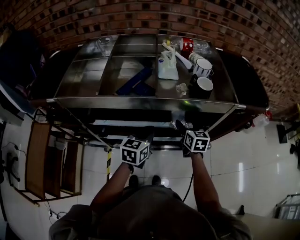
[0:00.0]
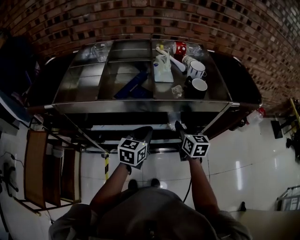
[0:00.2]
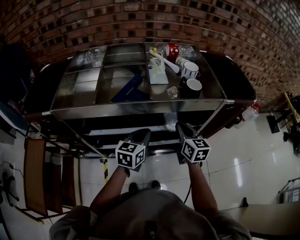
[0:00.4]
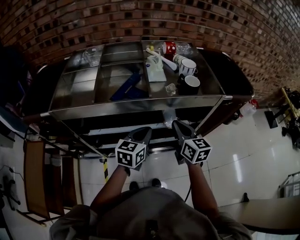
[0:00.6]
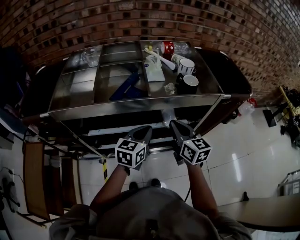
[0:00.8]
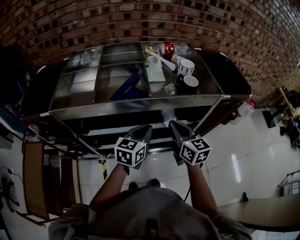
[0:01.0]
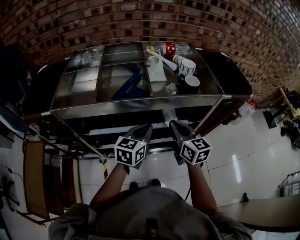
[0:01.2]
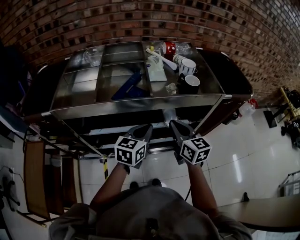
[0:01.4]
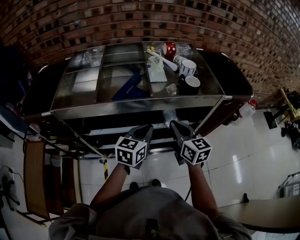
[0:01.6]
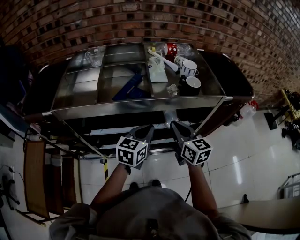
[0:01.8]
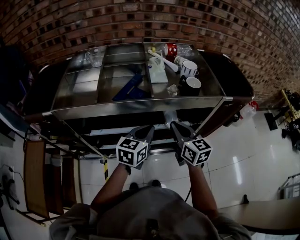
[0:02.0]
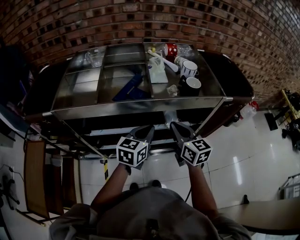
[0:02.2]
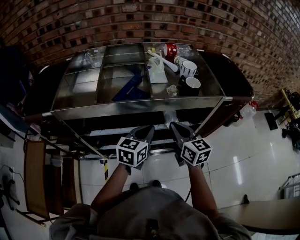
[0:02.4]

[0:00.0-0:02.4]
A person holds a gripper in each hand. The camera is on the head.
0:00.0 to 0:01.2: The left gripper shifts roughly 5 cm upward. Meanwhile the right gripper goes about 15 cm upward, backward and to the left, and closes up.
0:01.2 to 0:02.4: Both grippers stay put.

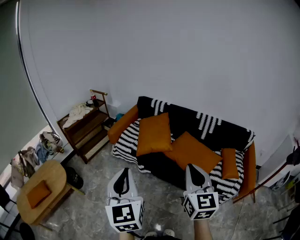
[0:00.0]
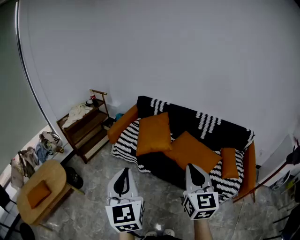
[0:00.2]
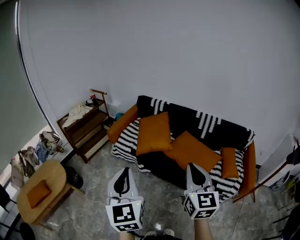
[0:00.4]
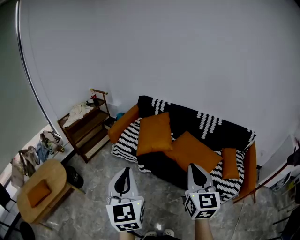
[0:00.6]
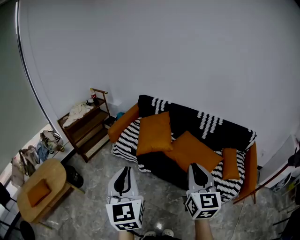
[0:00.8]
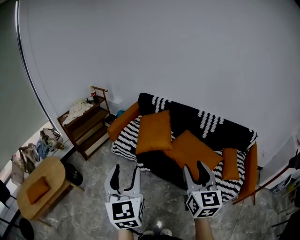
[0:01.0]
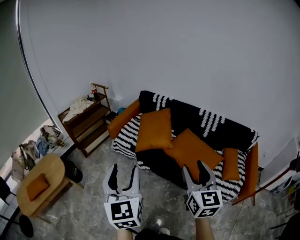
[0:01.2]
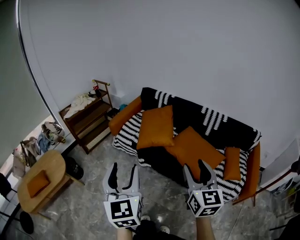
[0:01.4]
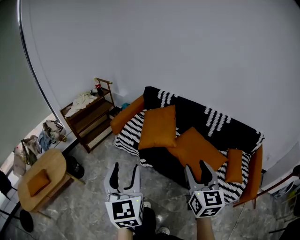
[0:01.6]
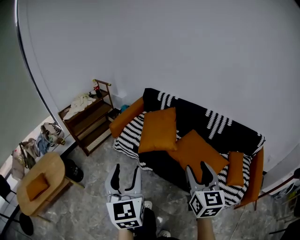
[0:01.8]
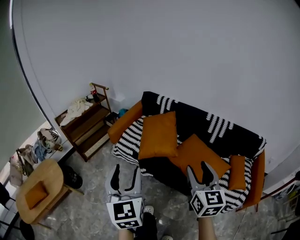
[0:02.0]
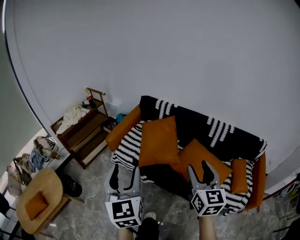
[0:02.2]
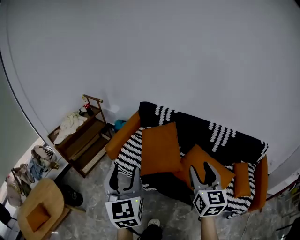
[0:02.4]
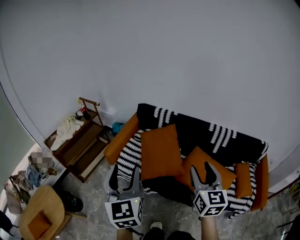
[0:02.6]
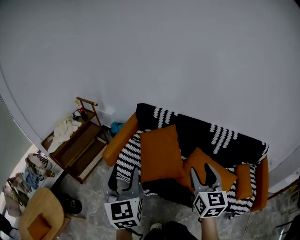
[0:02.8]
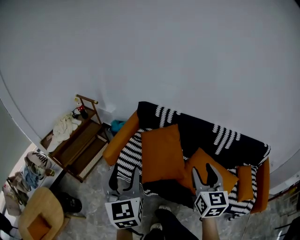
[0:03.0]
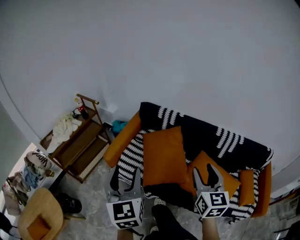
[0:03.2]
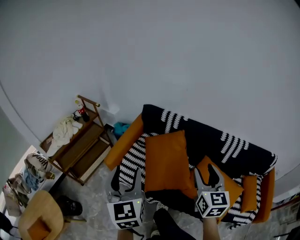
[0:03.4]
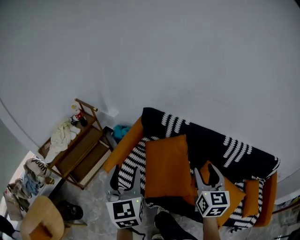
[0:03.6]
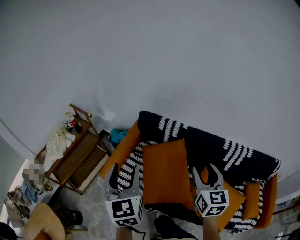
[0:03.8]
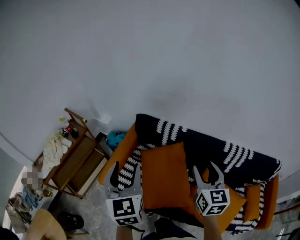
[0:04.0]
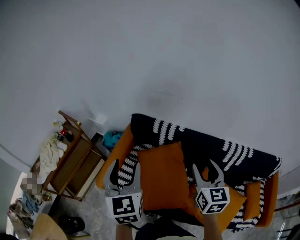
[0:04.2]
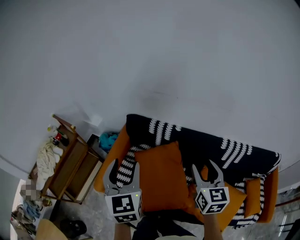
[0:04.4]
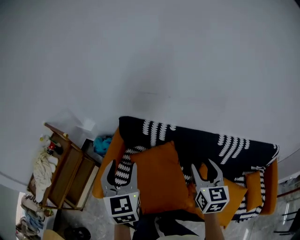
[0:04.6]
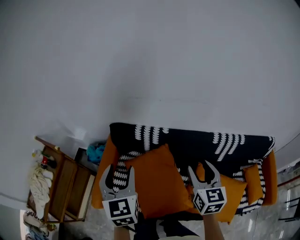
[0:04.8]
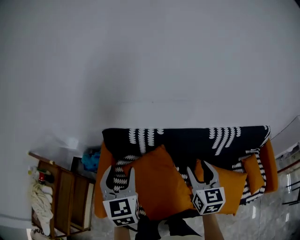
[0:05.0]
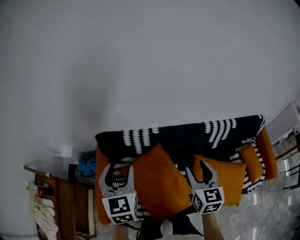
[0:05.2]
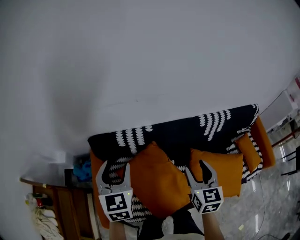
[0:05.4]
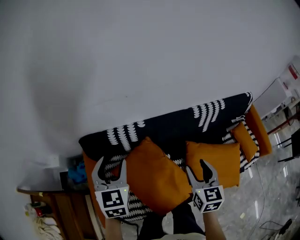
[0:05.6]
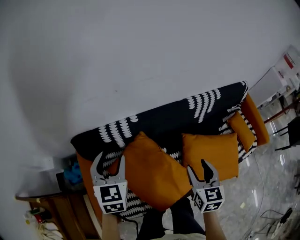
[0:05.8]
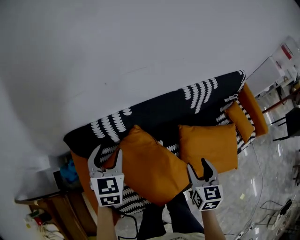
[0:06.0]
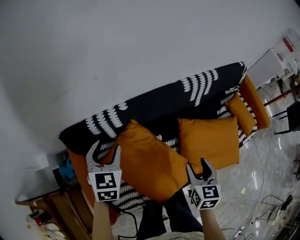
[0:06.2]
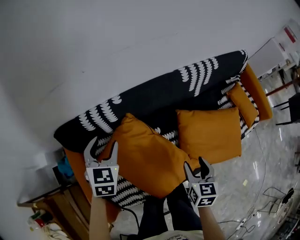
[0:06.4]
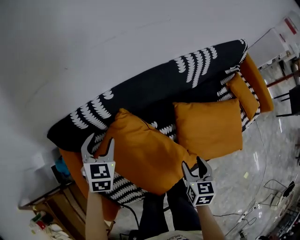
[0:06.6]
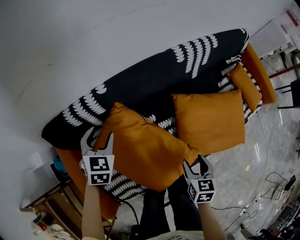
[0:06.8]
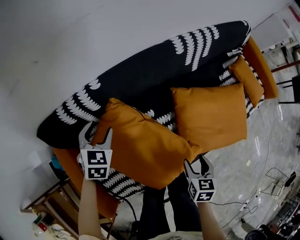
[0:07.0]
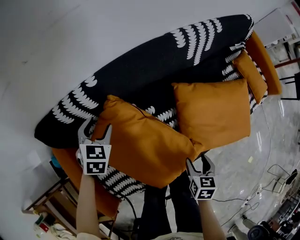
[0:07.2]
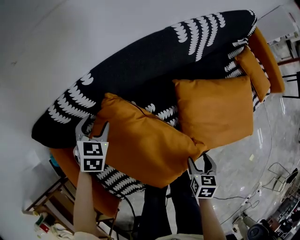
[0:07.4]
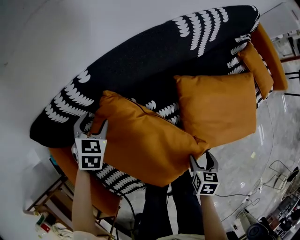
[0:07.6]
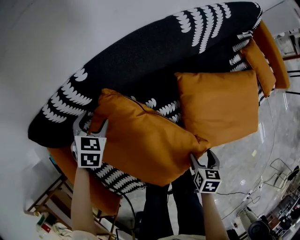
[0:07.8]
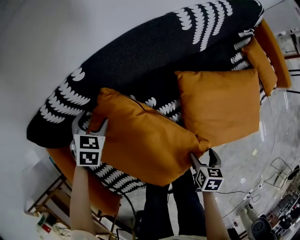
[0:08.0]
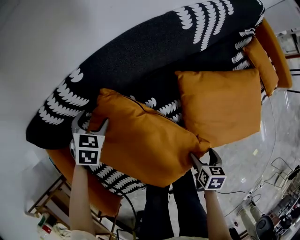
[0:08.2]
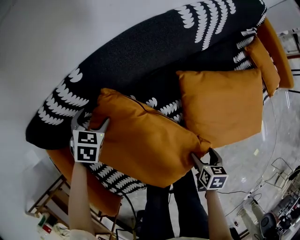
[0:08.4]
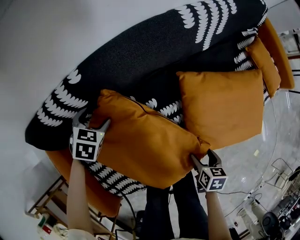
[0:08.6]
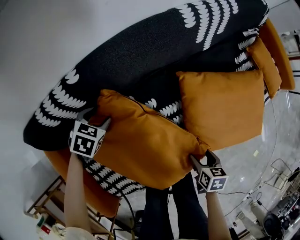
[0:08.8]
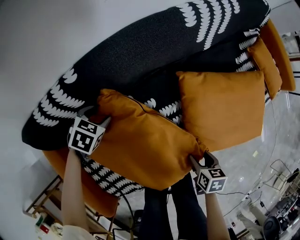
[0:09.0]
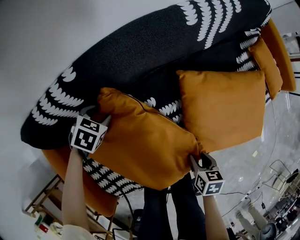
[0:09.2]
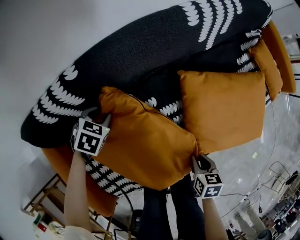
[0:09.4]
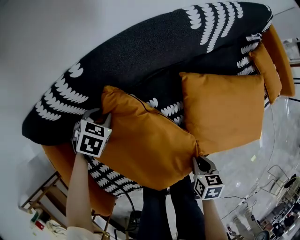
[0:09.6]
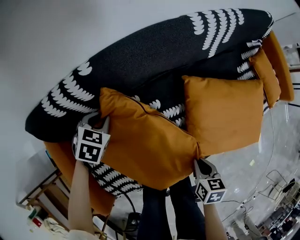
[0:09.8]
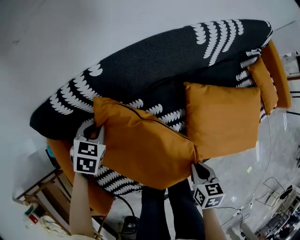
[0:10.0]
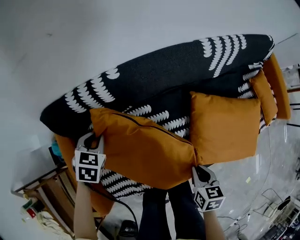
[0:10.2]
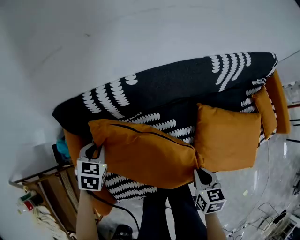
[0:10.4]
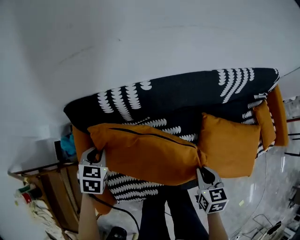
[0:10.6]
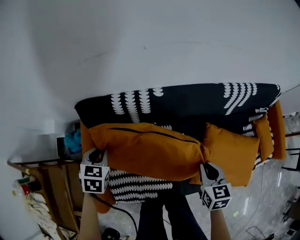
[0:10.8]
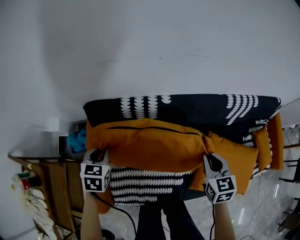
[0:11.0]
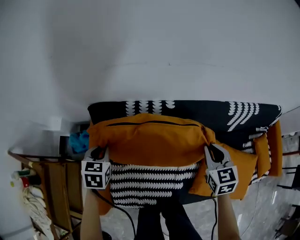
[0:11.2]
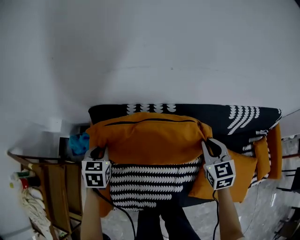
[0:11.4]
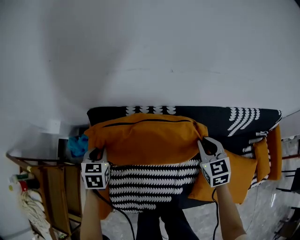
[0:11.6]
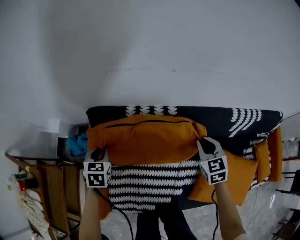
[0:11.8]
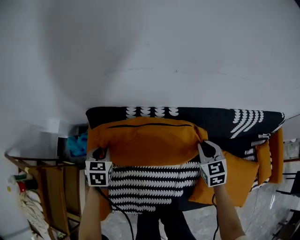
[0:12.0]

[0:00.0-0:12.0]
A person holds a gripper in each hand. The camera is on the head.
0:00.0 to 0:01.6: The right gripper goes about 10 cm forward and to the right, and opens. The left gripper shifts some 5 cm forward, and opens its fingers.
0:01.6 to 0:03.0: Both grippers move forward, about 35 cm.
0:03.0 to 0:04.4: The two grippers go some 35 cm forward.
0:04.4 to 0:06.0: The right gripper is displaced downward by some 15 cm, and changes its angle by approximately 40 degrees. Meanwhile the left gripper moves about 35 cm, and rotates roughly 50 degrees.
0:06.0 to 0:07.6: Both grippers travel together downward, about 30 cm. The right gripper points its fingers roughly 30 degrees further downward. Meanwhile the left gripper rotates approximately 30 degrees.
0:07.6 to 0:09.0: The left gripper shifts roughly 10 cm downward, and changes its angle by approximately 20 degrees, while the right gripper heads downward, covering approximately 5 cm.
0:09.0 to 0:10.4: The right gripper travels upward by some 15 cm, turns by approximately 30 degrees, and closes its fingers. Meanwhile the left gripper moves about 25 cm, changes its angle by roughly 30 degrees, and closes.
0:10.4 to 0:12.0: The right gripper heads forward, covering about 25 cm, and swivels roughly 40 degrees; the left gripper travels to the left by approximately 10 cm, and turns by about 30 degrees.

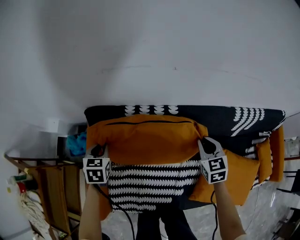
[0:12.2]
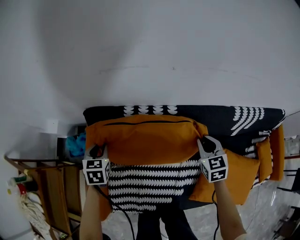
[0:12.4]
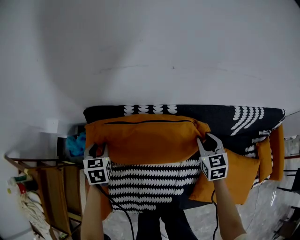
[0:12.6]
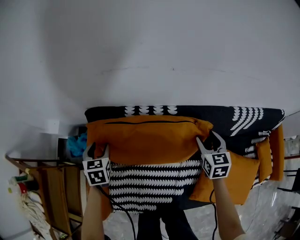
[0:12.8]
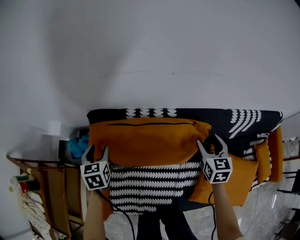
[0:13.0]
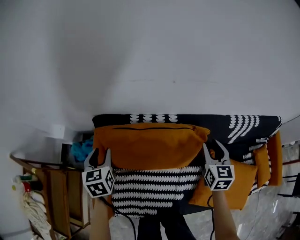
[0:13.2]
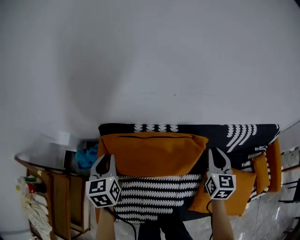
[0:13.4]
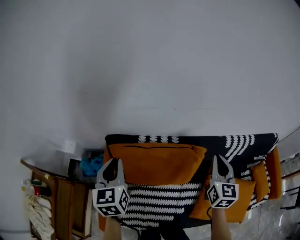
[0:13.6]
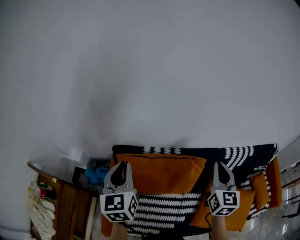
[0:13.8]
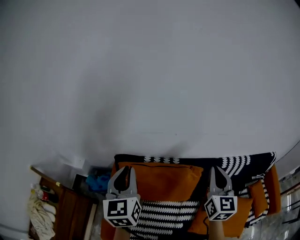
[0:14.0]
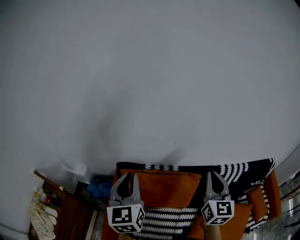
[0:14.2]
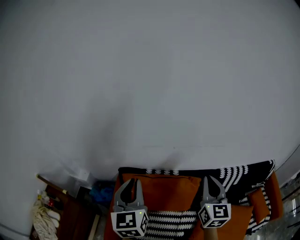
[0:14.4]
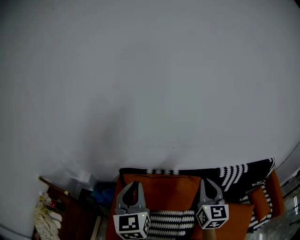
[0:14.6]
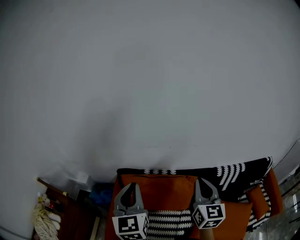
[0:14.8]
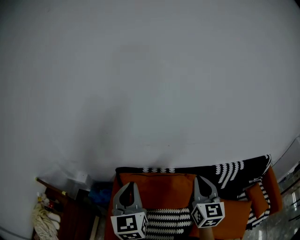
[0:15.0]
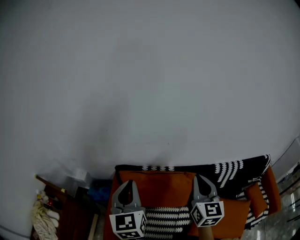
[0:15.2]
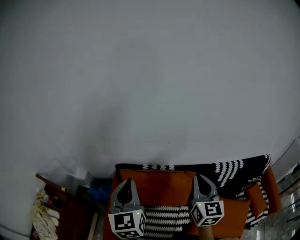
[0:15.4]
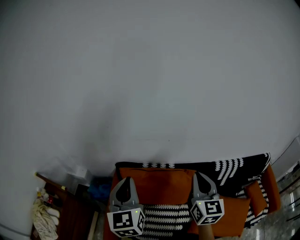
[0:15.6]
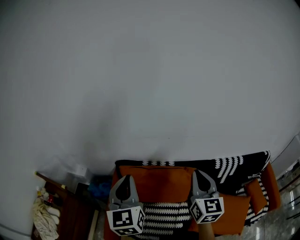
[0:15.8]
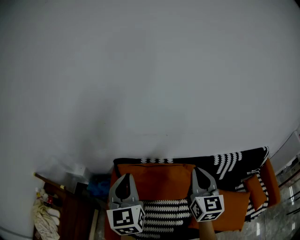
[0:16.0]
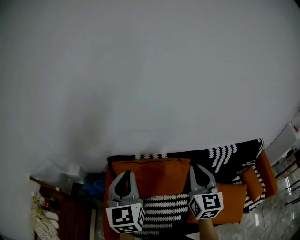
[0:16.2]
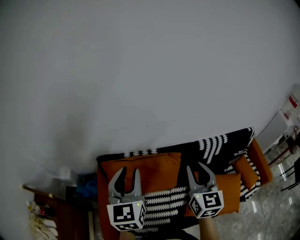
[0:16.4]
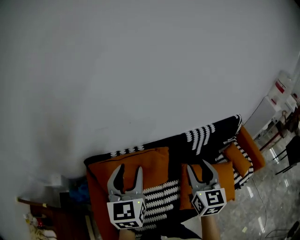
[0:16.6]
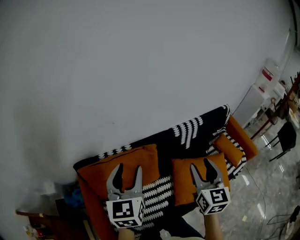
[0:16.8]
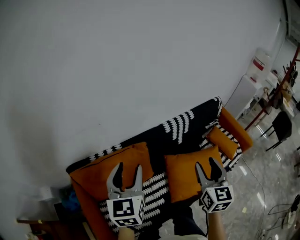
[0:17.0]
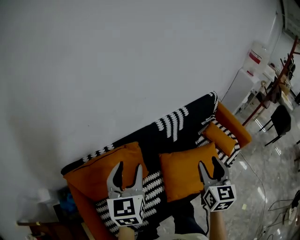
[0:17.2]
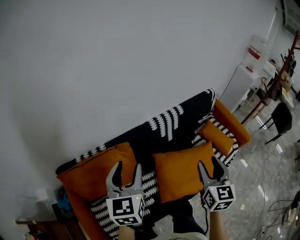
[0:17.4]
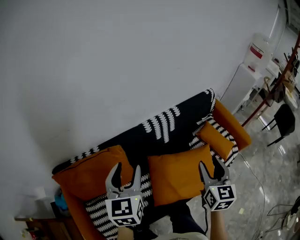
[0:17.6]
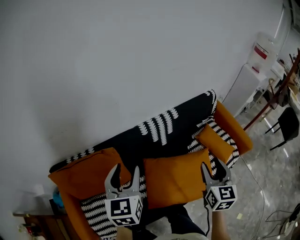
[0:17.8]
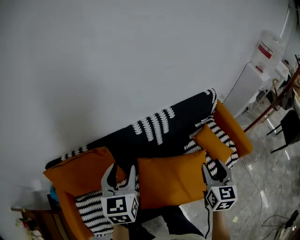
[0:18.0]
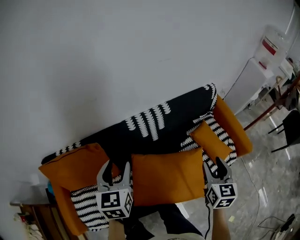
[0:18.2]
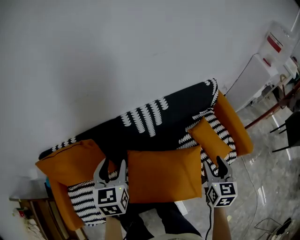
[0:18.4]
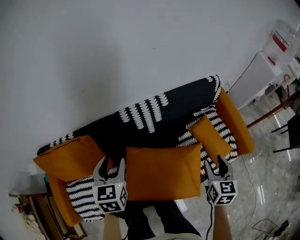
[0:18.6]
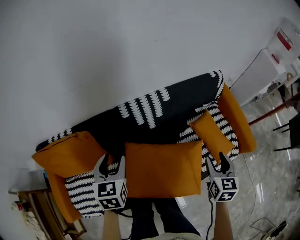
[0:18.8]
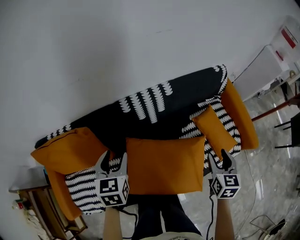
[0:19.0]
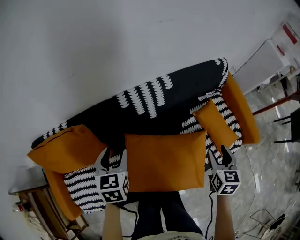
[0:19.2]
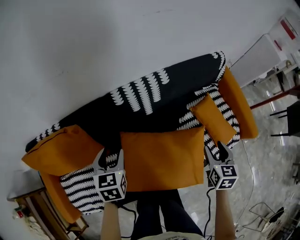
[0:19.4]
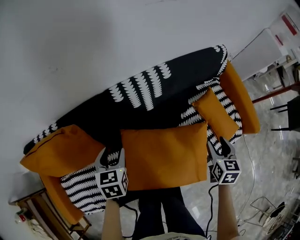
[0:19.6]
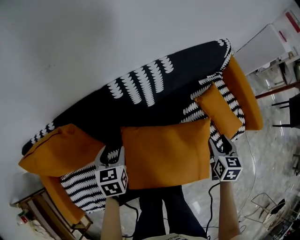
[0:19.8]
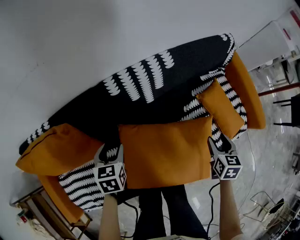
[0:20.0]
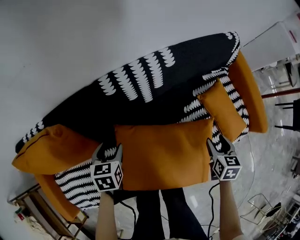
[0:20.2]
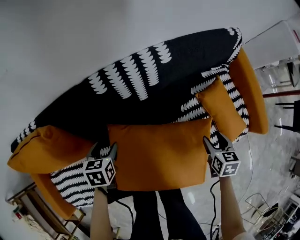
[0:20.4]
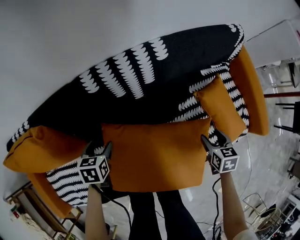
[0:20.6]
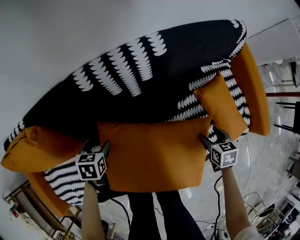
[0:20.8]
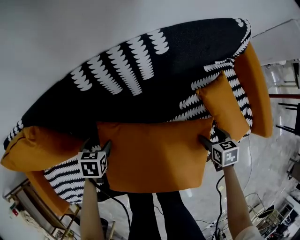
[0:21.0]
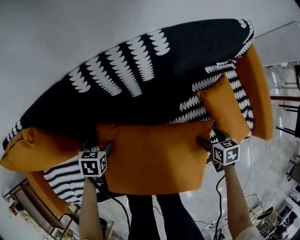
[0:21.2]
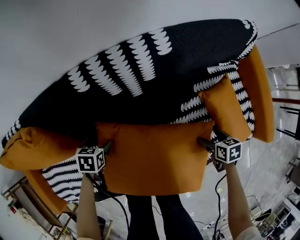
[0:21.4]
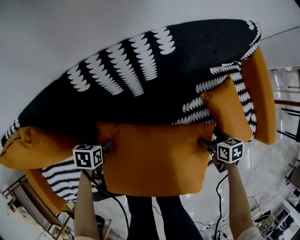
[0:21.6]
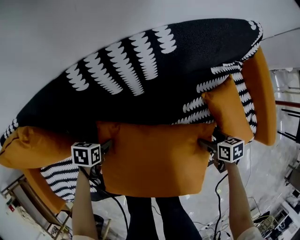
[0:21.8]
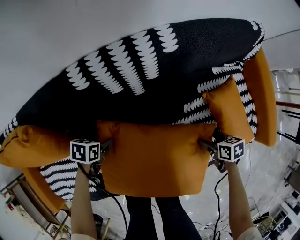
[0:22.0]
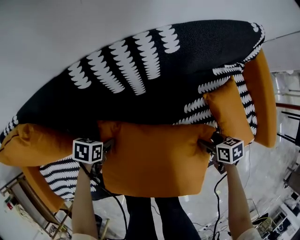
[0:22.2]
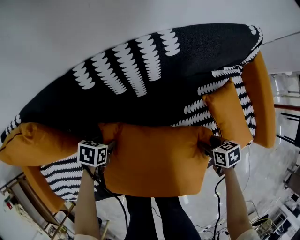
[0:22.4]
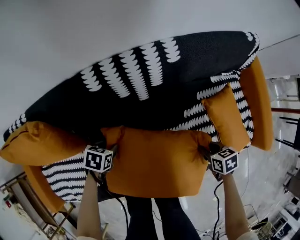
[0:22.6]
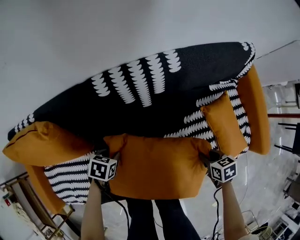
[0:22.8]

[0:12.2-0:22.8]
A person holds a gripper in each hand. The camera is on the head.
0:12.2 to 0:13.8: The grippers both shift upward by about 30 cm. The left gripper points its fingers some 40 degrees further upward, and opens, then closes again, while the right gripper changes its angle by some 30 degrees, and opens, then closes again.
0:13.8 to 0:15.2: The right gripper is displaced upward, backward and to the left by about 15 cm; the left gripper travels upward and backward by roughly 15 cm.
0:15.2 to 0:16.8: The left gripper ends up some 15 cm from where it was, turns by some 30 degrees, and opens; the right gripper shifts by approximately 20 cm, rotates some 30 degrees, and opens its fingers.
0:16.8 to 0:18.2: The right gripper goes some 40 cm to the right; the left gripper moves to the right and forward, some 35 cm.
0:18.2 to 0:19.8: The two grippers go roughly 25 cm downward. The left gripper rotates some 20 degrees. Meanwhile the right gripper changes its angle by about 20 degrees.
0:19.8 to 0:21.2: Both grippers travel together downward, about 20 cm. The left gripper changes its angle by some 30 degrees; the right gripper turns by about 30 degrees.
0:21.2 to 0:22.8: The left gripper ends up about 5 cm from where it was, and closes up; the right gripper moves approximately 5 cm, and closes up.
